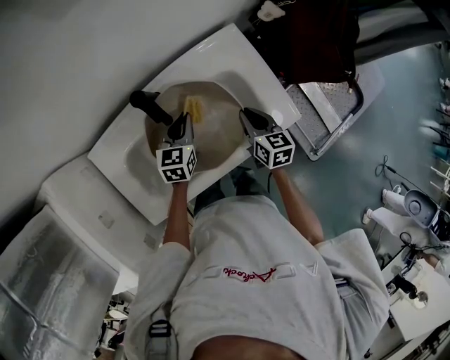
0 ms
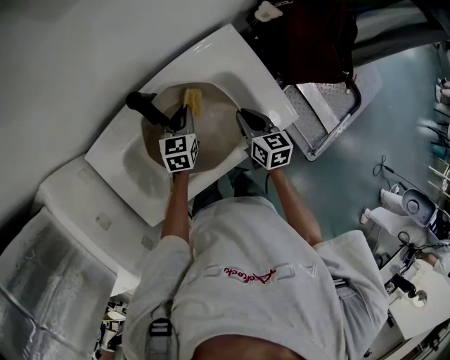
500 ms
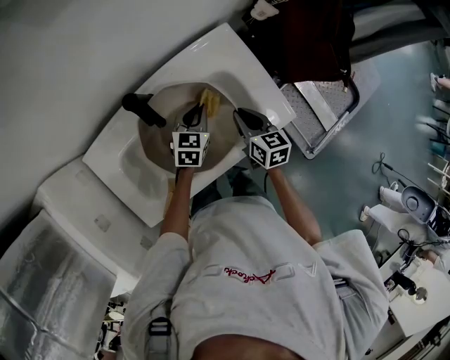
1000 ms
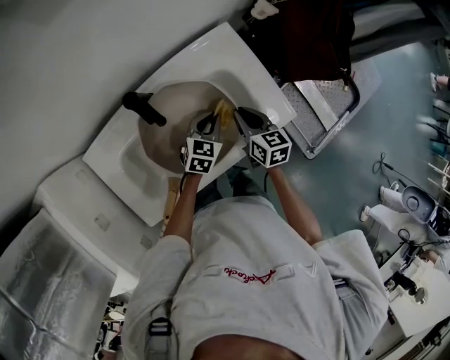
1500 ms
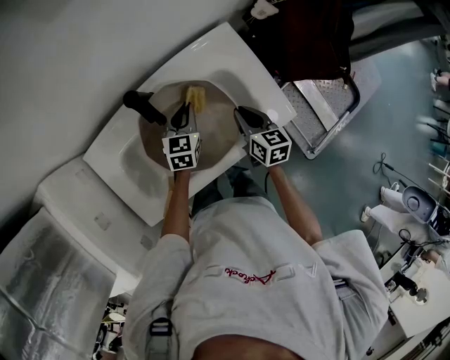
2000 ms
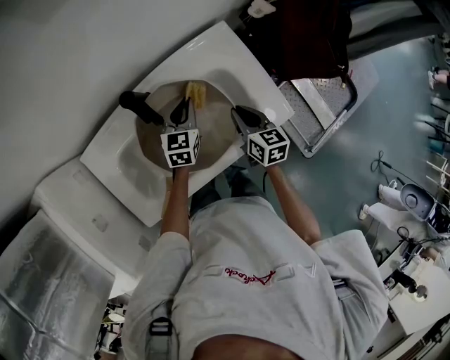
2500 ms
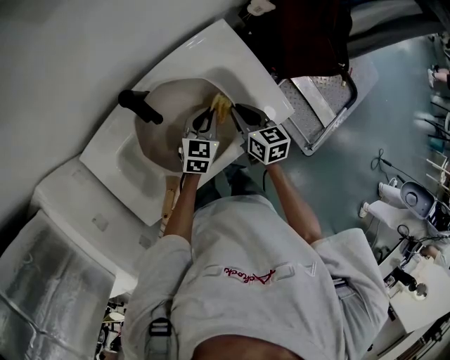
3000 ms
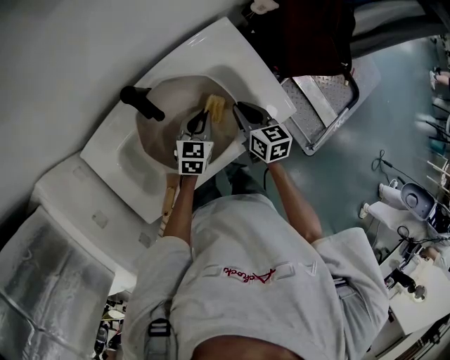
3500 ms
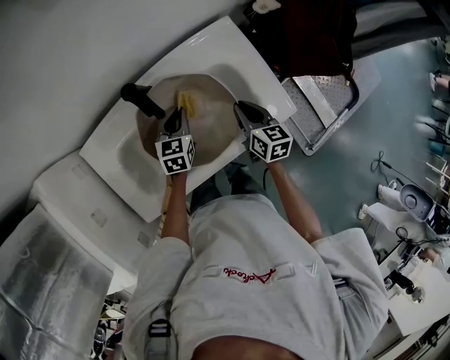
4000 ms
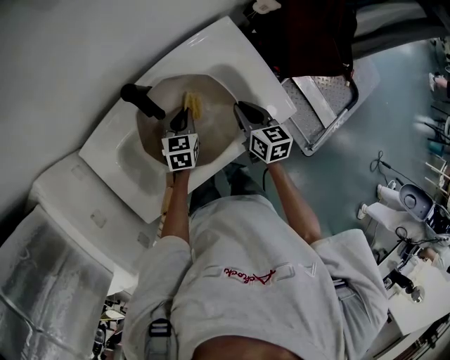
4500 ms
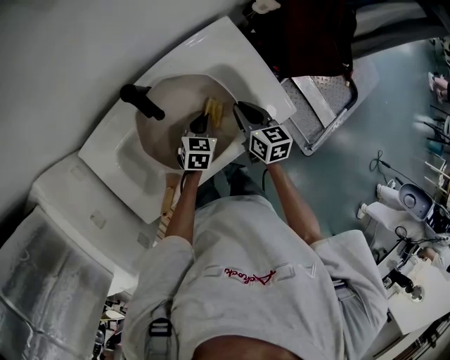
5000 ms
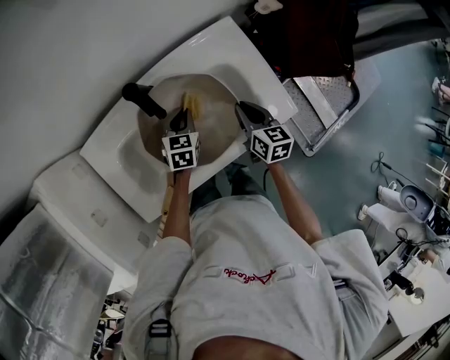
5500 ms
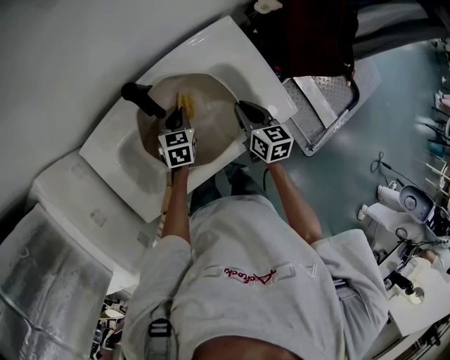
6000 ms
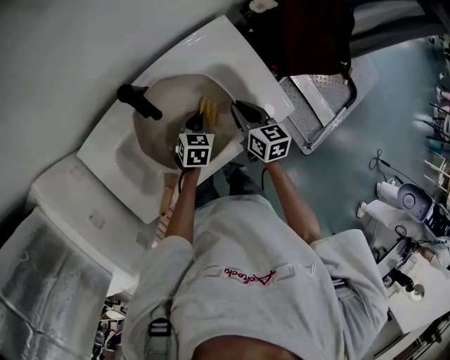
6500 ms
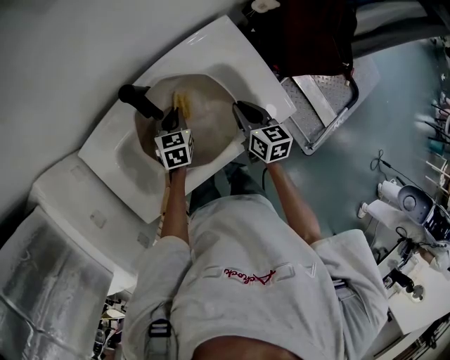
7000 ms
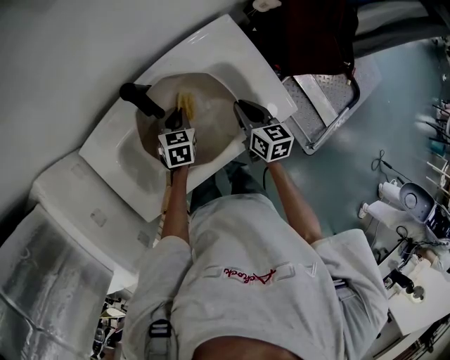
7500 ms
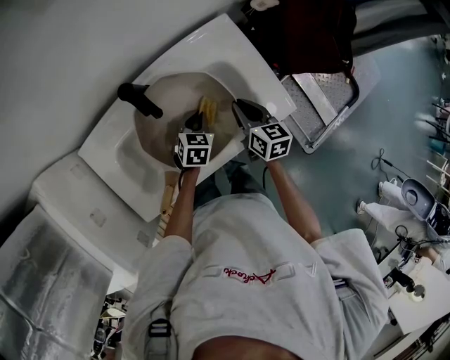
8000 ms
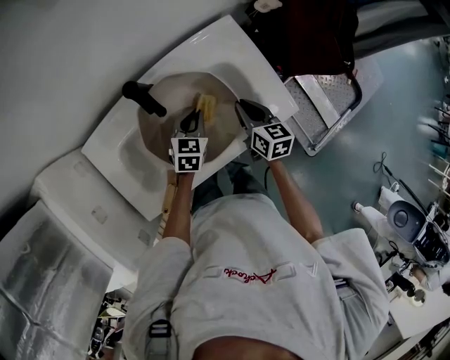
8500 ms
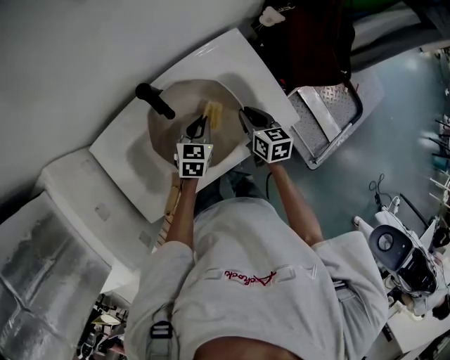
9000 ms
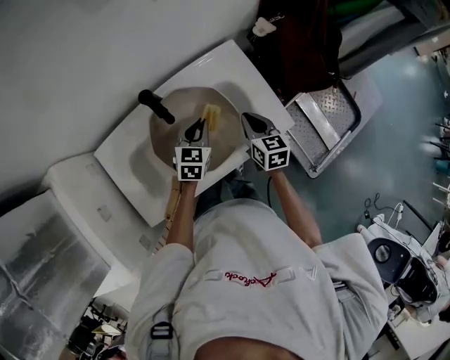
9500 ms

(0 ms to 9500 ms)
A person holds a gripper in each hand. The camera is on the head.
0 ms - 2000 ms: The left gripper reaches some 10 cm to the right, then returns.
2000 ms - 4000 ms: The left gripper reaches some 10 cm to the right, then returns.
4000 ms - 5500 ms: The left gripper goes to the right and returns, about 10 cm each way.
5500 ms - 7500 ms: The left gripper goes to the right and returns, some 5 cm each way.
7500 ms - 9500 ms: The left gripper is displaced upward and to the right by roughly 10 cm.

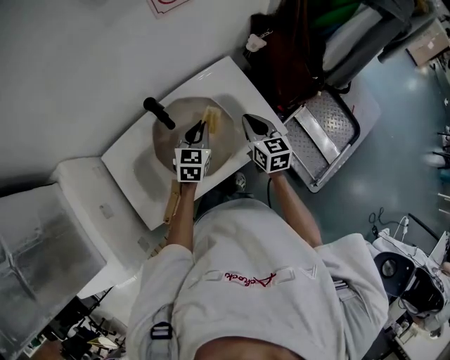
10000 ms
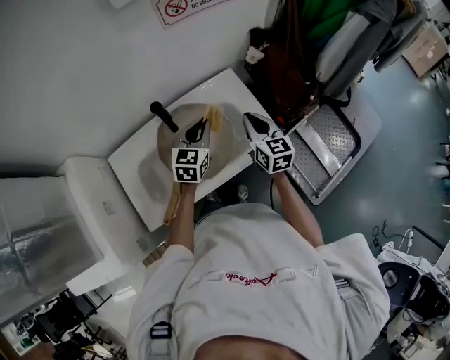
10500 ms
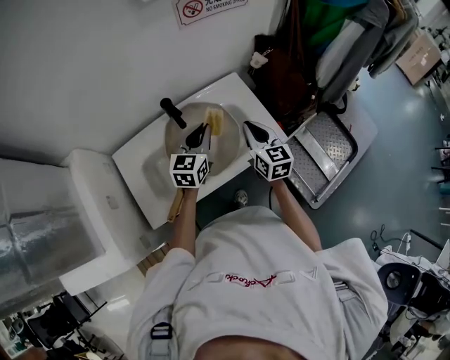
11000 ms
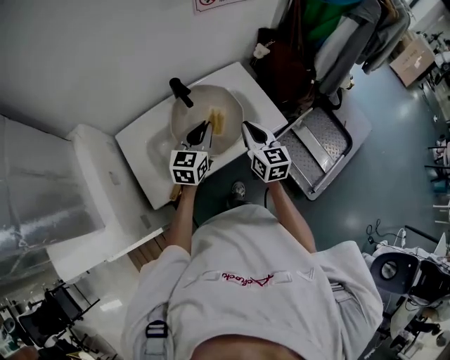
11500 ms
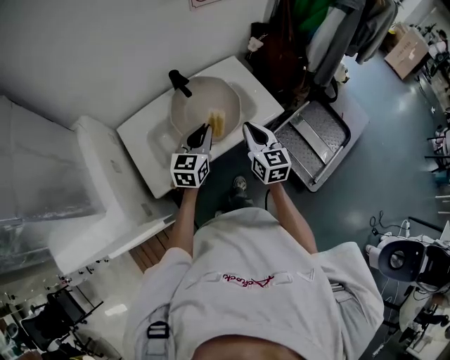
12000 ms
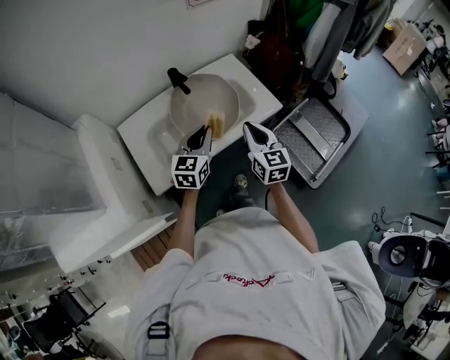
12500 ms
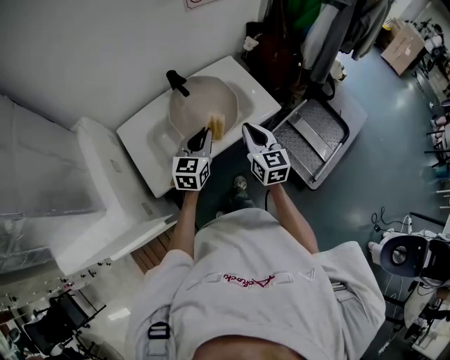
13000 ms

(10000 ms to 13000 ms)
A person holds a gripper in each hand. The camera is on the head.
10000 ms - 11500 ms: The right gripper goes approximately 15 cm backward, upward and to the left. Meanwhile the left gripper shifts roughly 15 cm backward and upward.
11500 ms - 13000 ms: Both grippers move backward, some 10 cm.

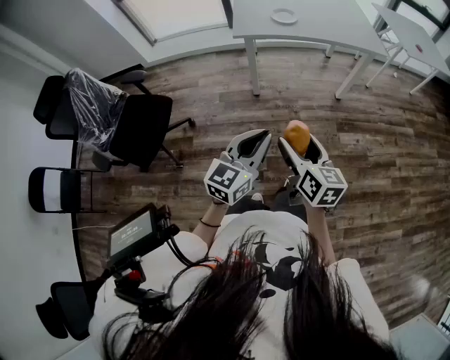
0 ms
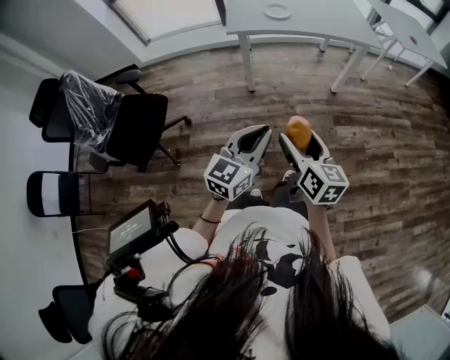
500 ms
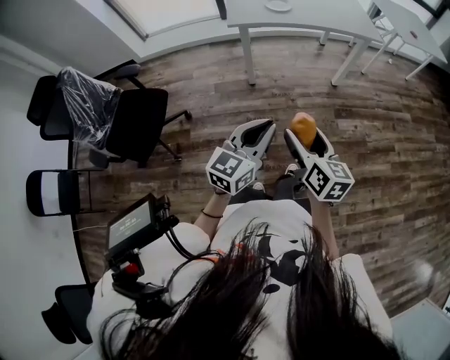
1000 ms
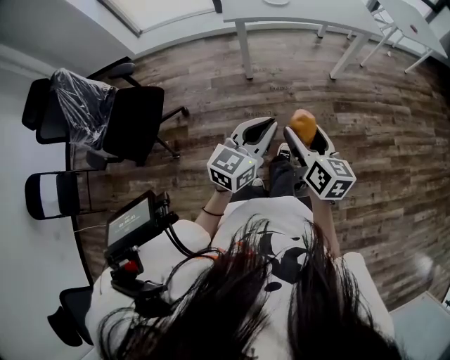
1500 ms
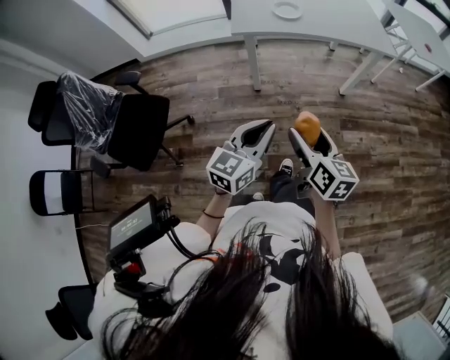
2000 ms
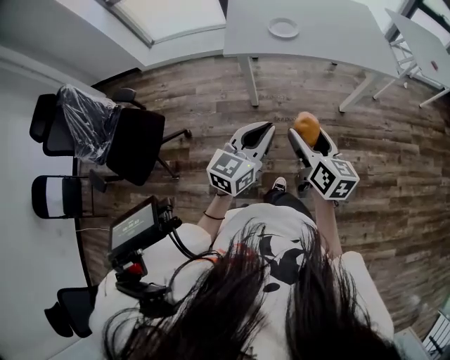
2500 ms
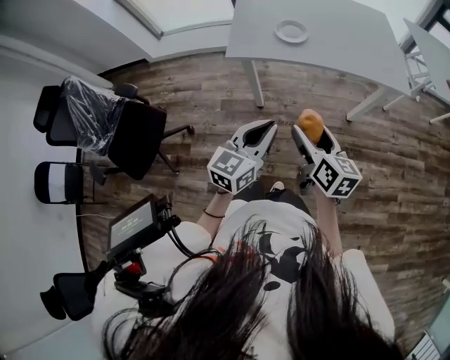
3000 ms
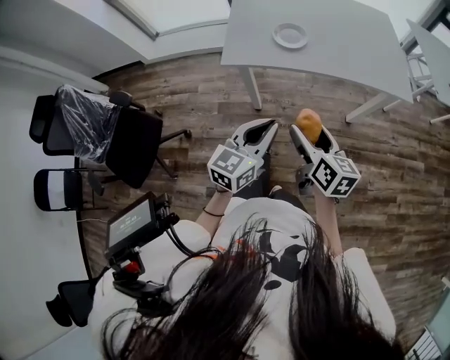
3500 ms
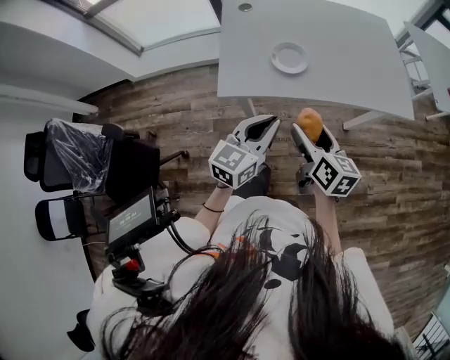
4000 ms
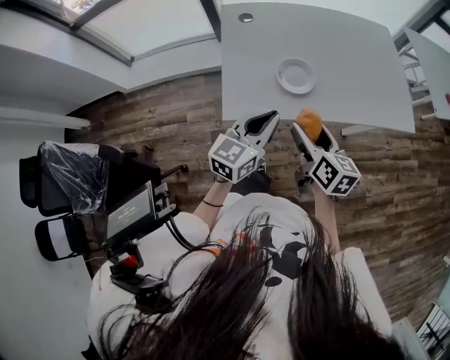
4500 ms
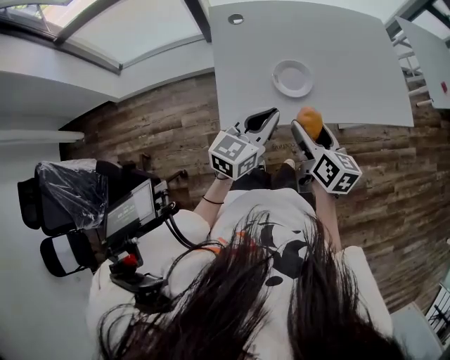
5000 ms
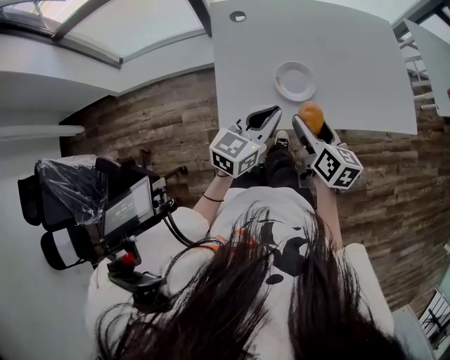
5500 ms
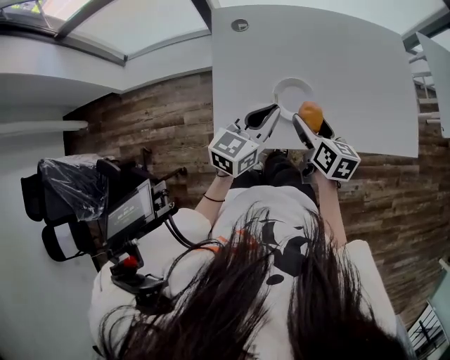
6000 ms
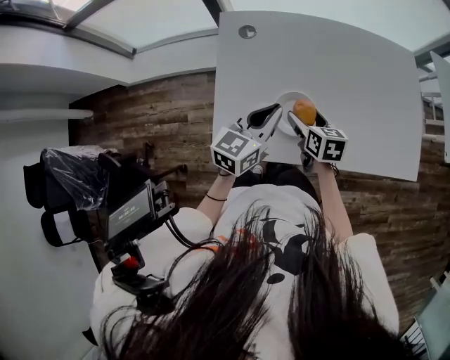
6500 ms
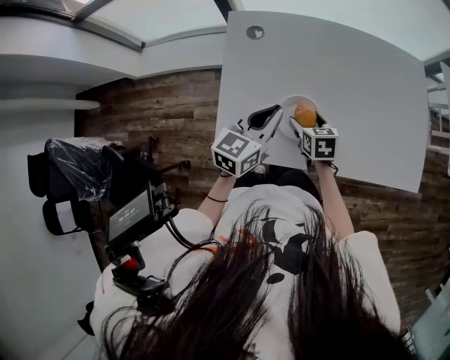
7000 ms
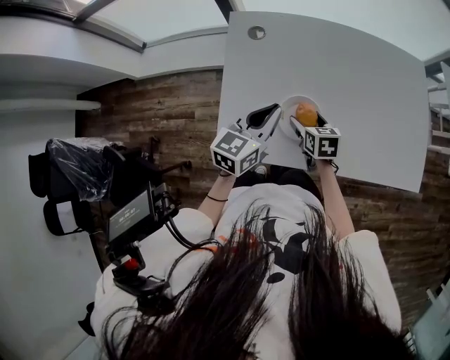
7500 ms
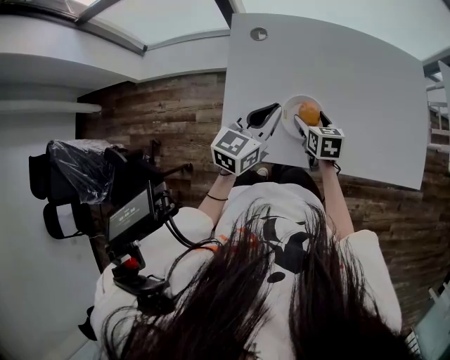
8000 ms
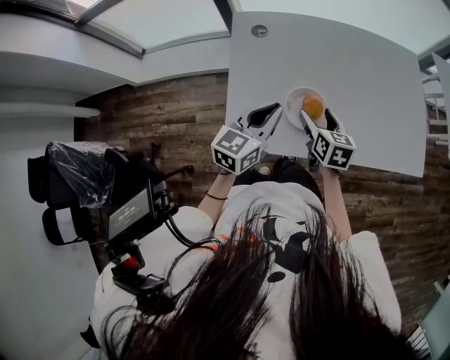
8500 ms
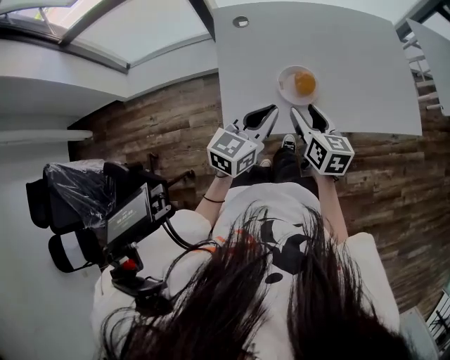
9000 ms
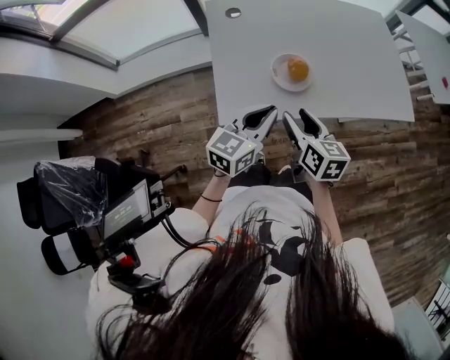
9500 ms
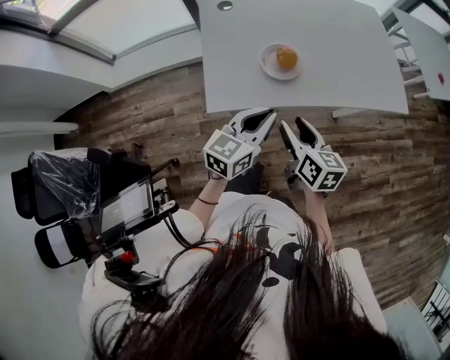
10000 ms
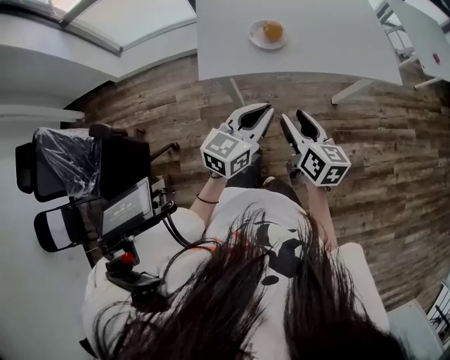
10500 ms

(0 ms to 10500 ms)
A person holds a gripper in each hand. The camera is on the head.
0 ms - 2000 ms: The two grippers go some 10 cm forward.
2000 ms - 4000 ms: The two grippers go about 35 cm forward.
4000 ms - 6500 ms: Both grippers move forward, some 25 cm. The right gripper rotates roughly 20 degrees.
6500 ms - 8500 ms: The grippers move only a little.
8500 ms - 10500 ms: The right gripper moves backward, roughly 30 cm, and closes up. The left gripper travels backward and to the right by approximately 30 cm.

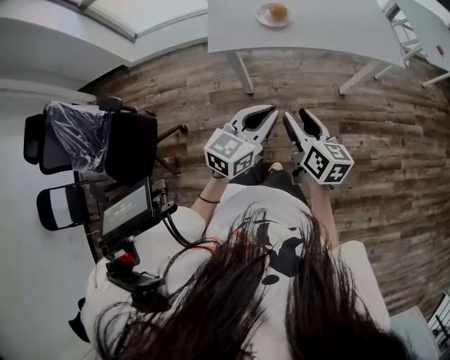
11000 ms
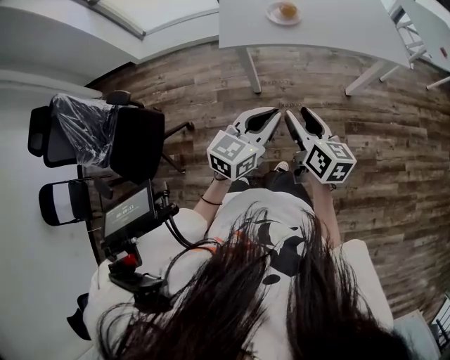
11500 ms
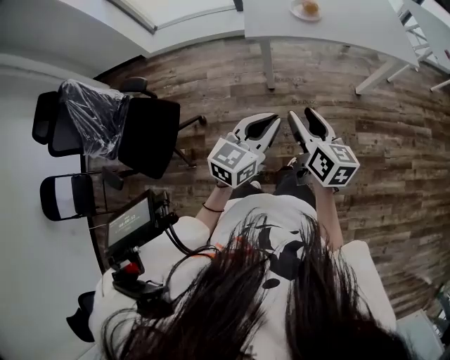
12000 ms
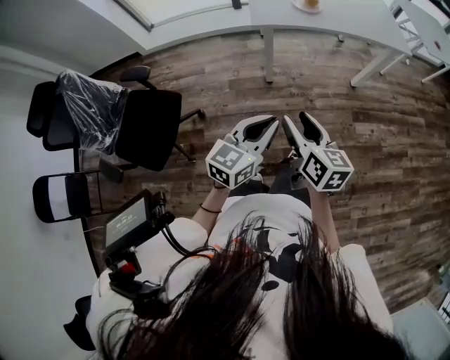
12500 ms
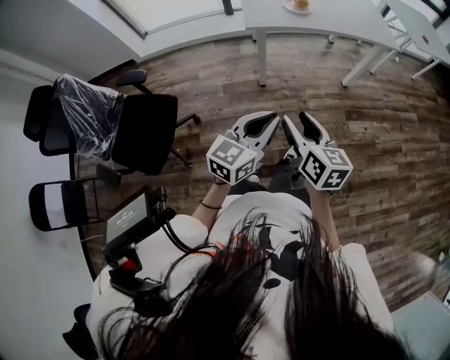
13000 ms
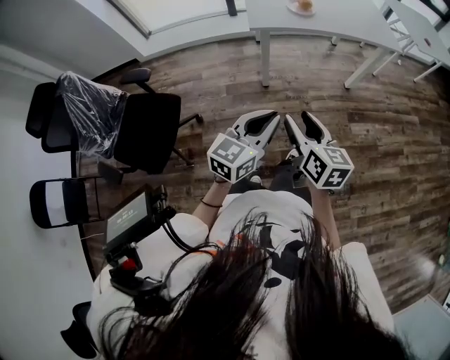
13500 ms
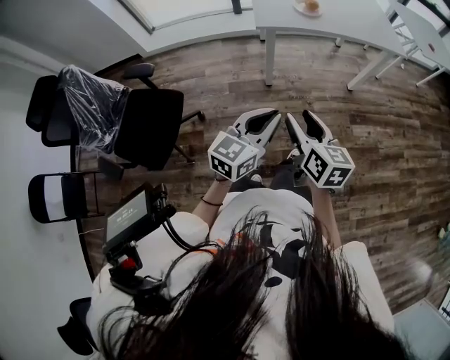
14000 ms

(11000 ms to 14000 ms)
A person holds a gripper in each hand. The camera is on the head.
11000 ms - 12500 ms: Both grippers move backward and to the left, approximately 25 cm.
12500 ms - 14000 ms: The grippers stay close to where they were, moving slightly.
